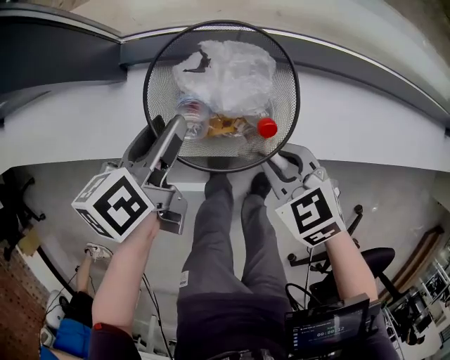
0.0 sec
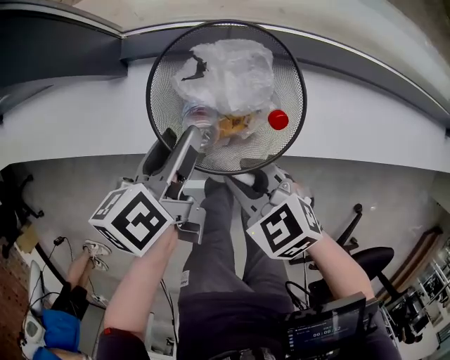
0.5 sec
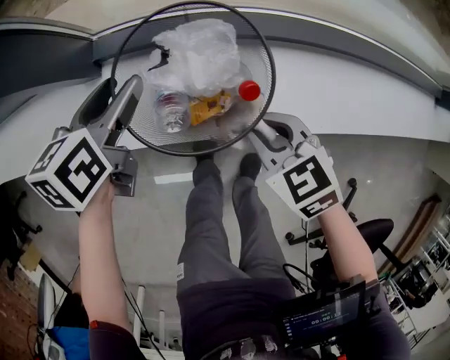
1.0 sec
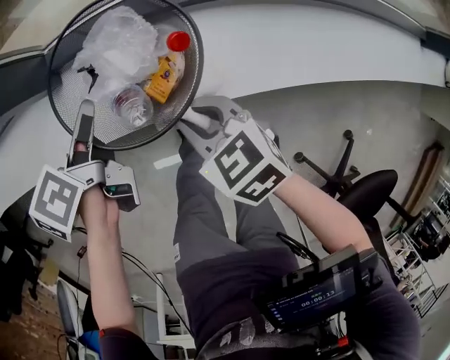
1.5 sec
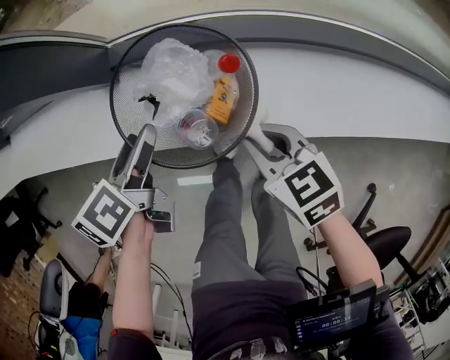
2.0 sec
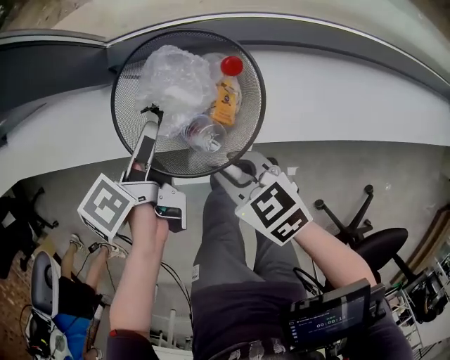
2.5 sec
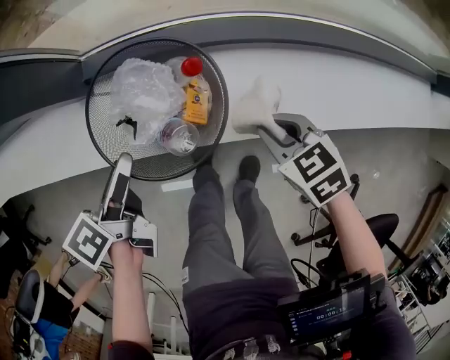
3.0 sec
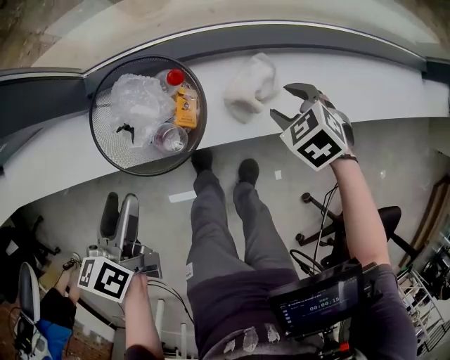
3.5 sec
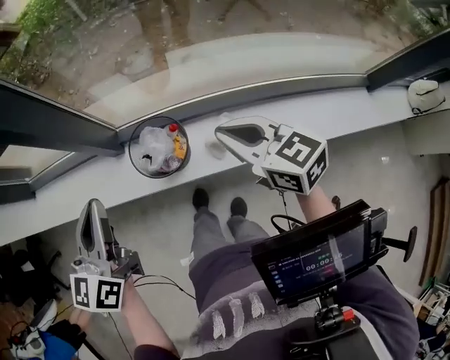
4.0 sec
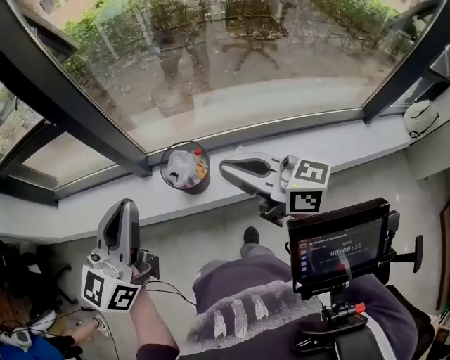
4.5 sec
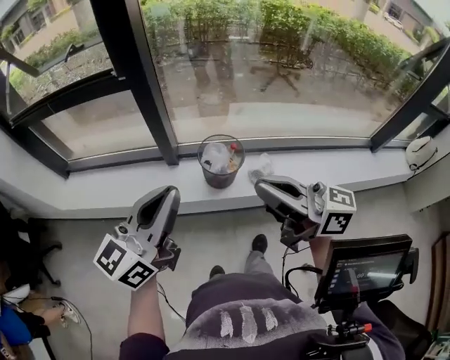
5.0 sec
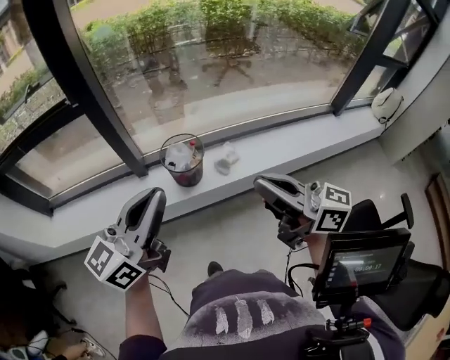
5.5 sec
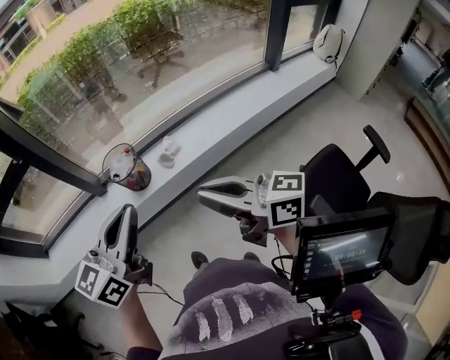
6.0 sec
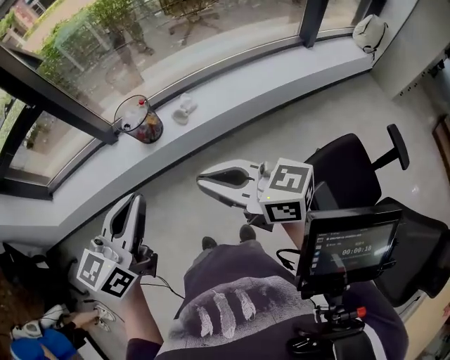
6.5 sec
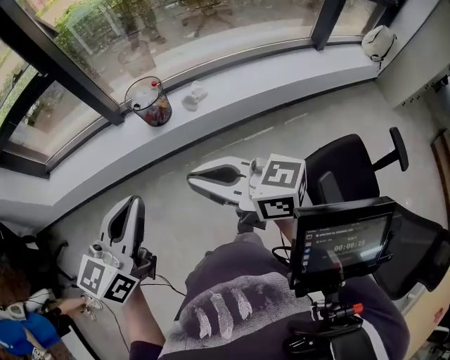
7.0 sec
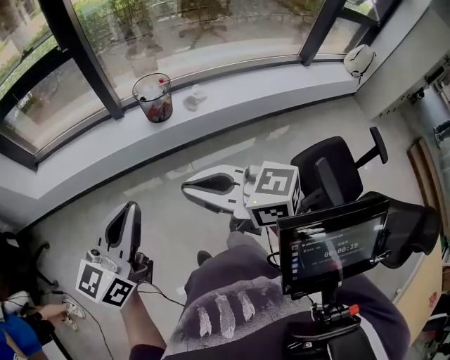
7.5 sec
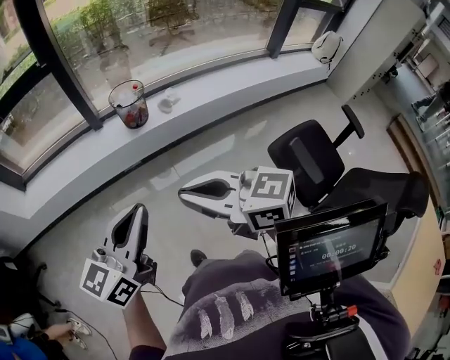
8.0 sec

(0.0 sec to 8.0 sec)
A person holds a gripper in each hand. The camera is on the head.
0.0 sec - 2.0 sec: The left gripper goes forward and returns, approximately 5 cm each way. Meanwhile the right gripper swings left and right, roughly 10 cm each way, with 2 reversals.
2.0 sec - 4.0 sec: Both grippers move upward, about 35 cm. The right gripper rotates some 30 degrees, and opens, then closes again. The left gripper tilts its fingers approximately 30 degrees upward, and closes.
4.0 sec - 6.0 sec: The grippers both shift backward by about 40 cm. The right gripper points its fingers roughly 30 degrees further upward. The left gripper turns by about 40 degrees.
6.0 sec - 8.0 sec: The right gripper travels to the left and backward by roughly 30 cm, and changes its angle by about 20 degrees. The left gripper goes about 30 cm backward and to the left.

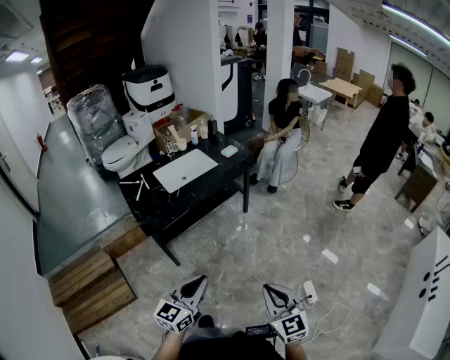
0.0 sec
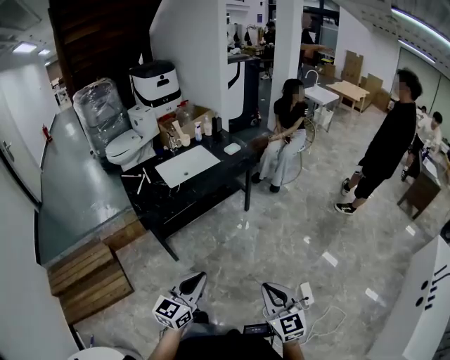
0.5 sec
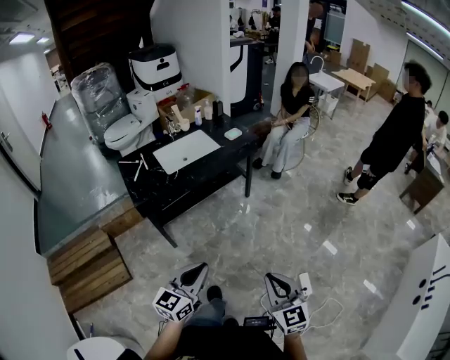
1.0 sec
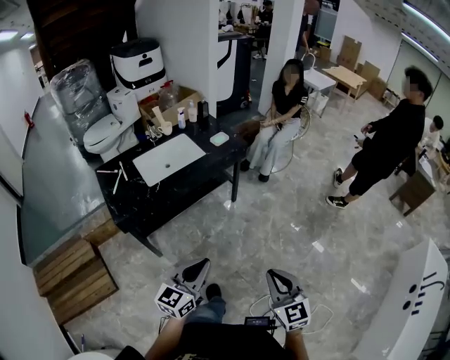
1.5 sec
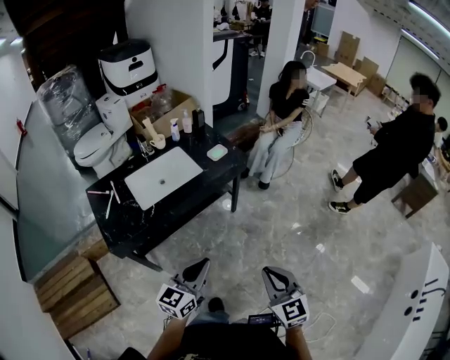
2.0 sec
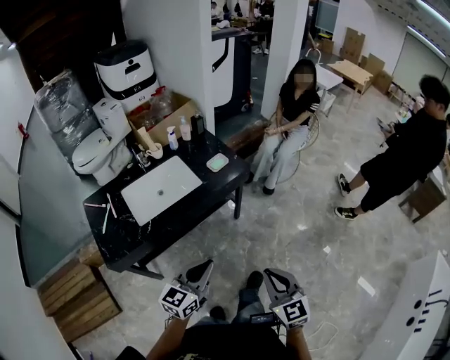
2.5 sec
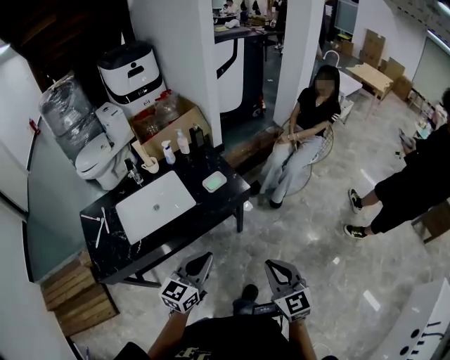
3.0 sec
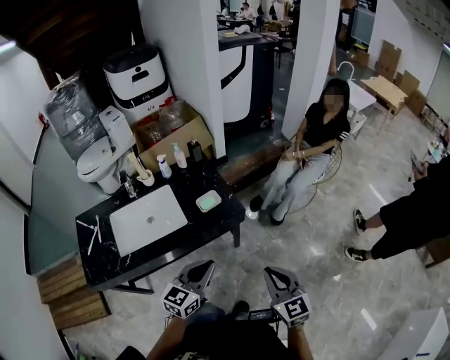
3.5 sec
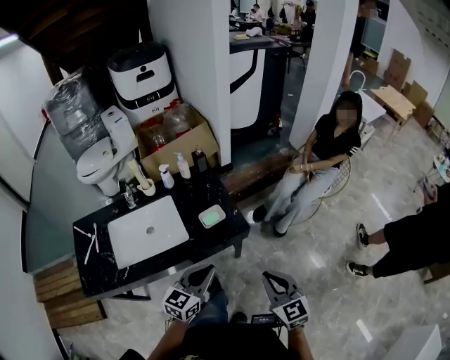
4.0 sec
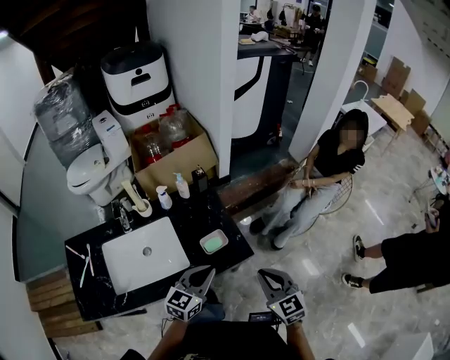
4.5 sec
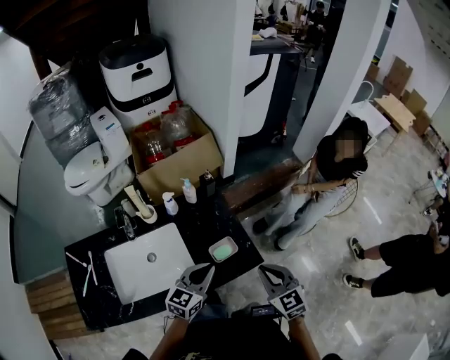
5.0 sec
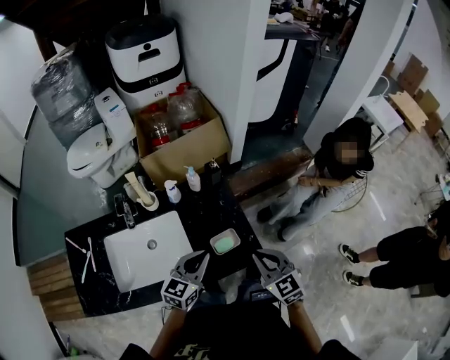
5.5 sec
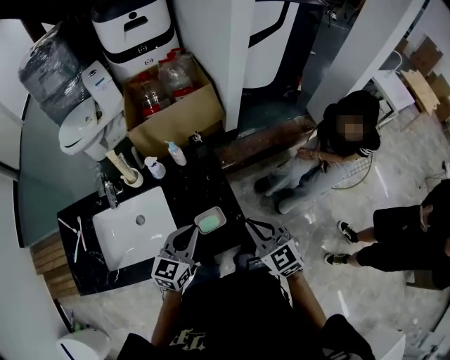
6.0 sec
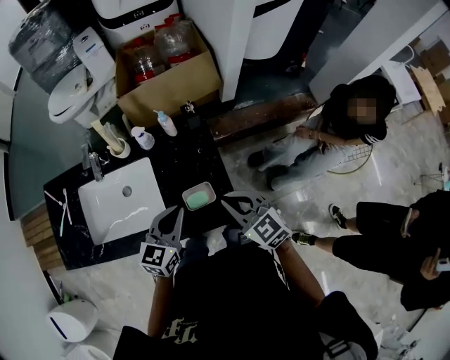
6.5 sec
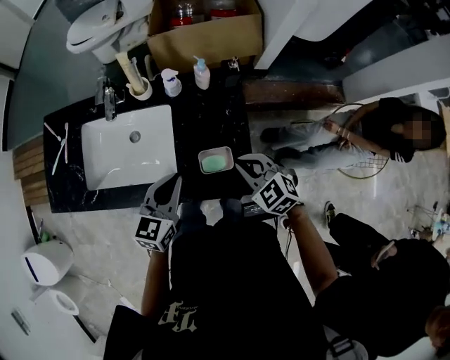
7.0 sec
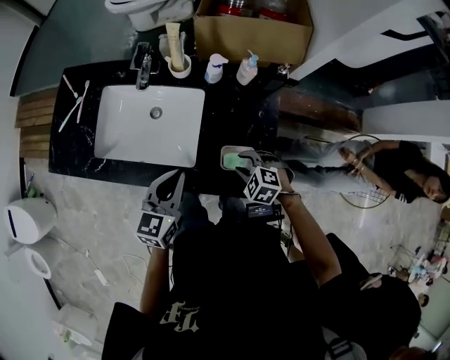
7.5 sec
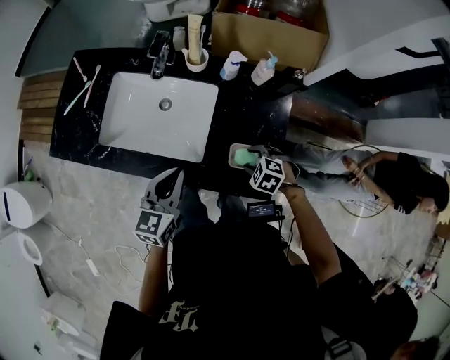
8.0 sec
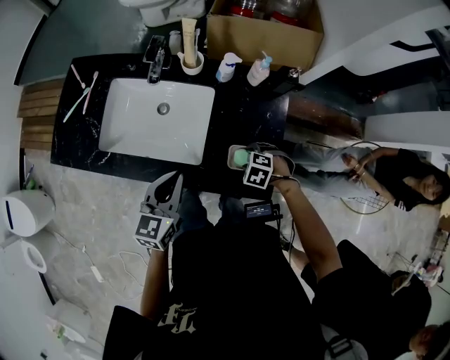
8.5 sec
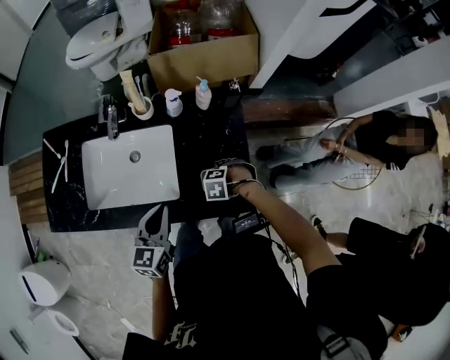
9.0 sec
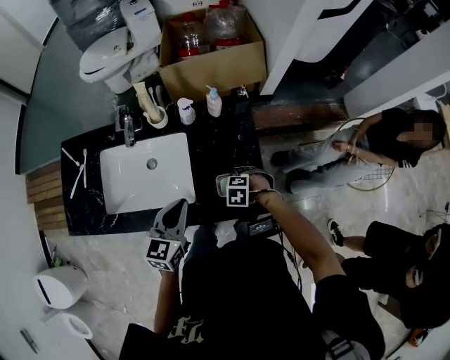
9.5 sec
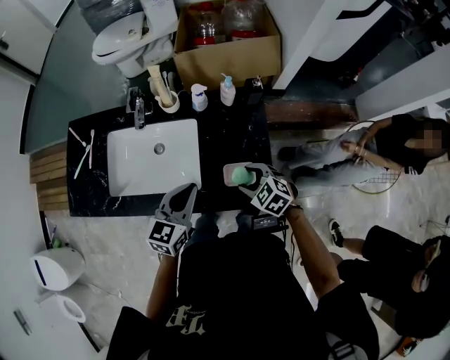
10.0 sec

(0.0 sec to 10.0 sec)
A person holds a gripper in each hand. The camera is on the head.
0.0 sec - 2.0 sec: The grippers both shift forward by roughly 30 cm.
2.0 sec - 4.0 sec: The two grippers travel together, forward, about 50 cm.
4.0 sec - 6.0 sec: Both grippers move forward, roughly 30 cm. The right gripper rotates about 20 degrees.
6.0 sec - 8.0 sec: The right gripper goes about 25 cm downward, angles its fingers downward, by roughly 50 degrees, and opens its fingers. The left gripper ends up about 20 cm from where it was, and changes its angle by about 40 degrees.
8.0 sec - 10.0 sec: The left gripper changes place by roughly 10 cm. Meanwhile the right gripper goes approximately 10 cm upward, and swivels approximately 30 degrees.

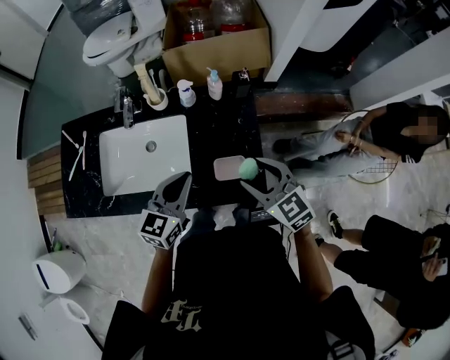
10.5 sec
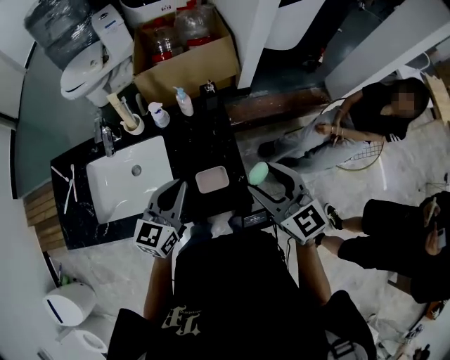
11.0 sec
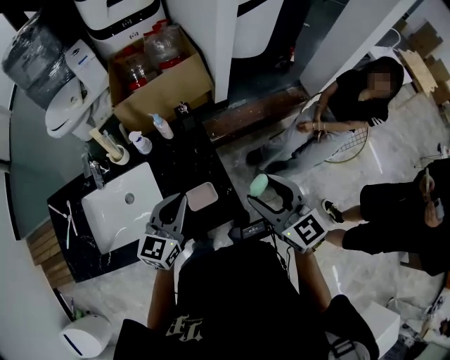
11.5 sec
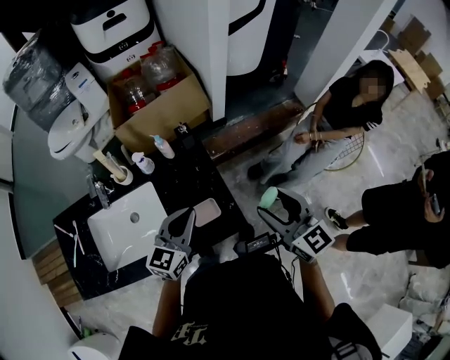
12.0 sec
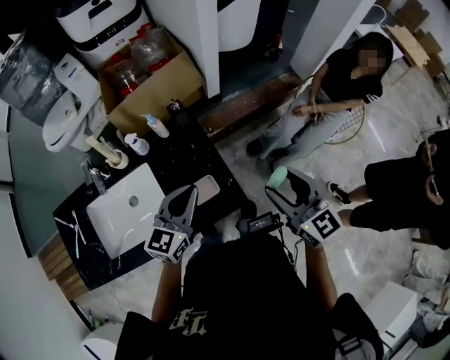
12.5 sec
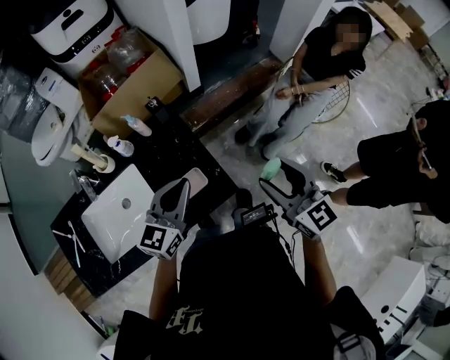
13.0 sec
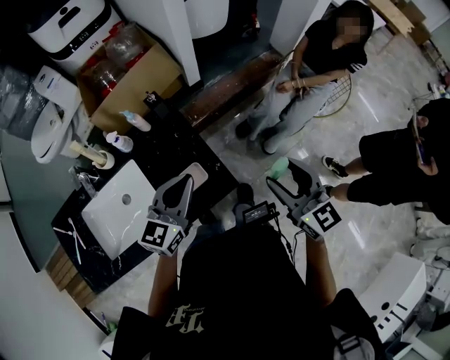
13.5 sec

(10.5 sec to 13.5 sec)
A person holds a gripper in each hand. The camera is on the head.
10.5 sec - 12.0 sec: The left gripper shifts some 10 cm to the right, while the right gripper shifts about 20 cm to the right and upward, and swivels approximately 40 degrees.
12.0 sec - 13.5 sec: The left gripper goes about 5 cm to the right. Meanwhile the right gripper moves to the right and backward, approximately 10 cm.

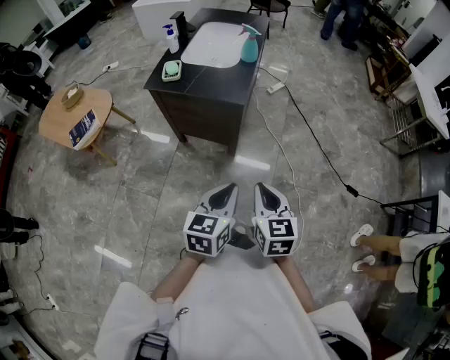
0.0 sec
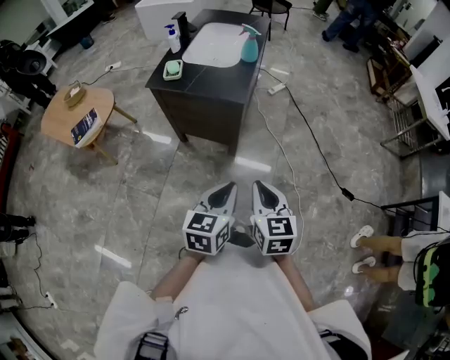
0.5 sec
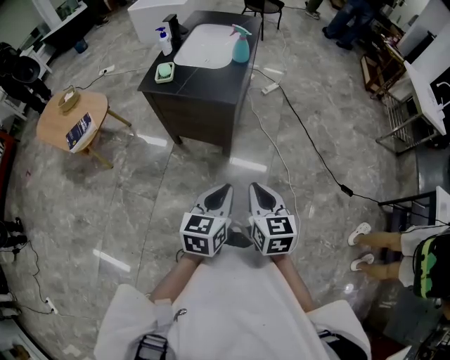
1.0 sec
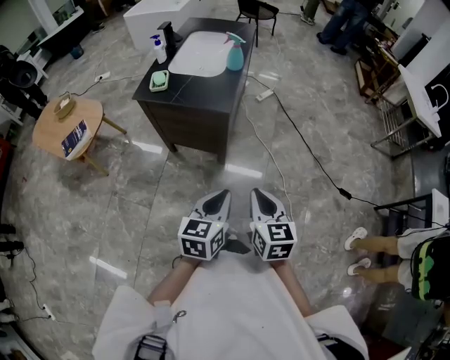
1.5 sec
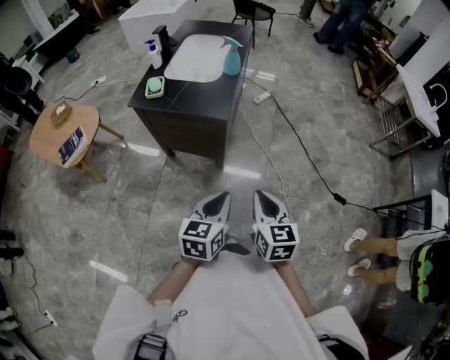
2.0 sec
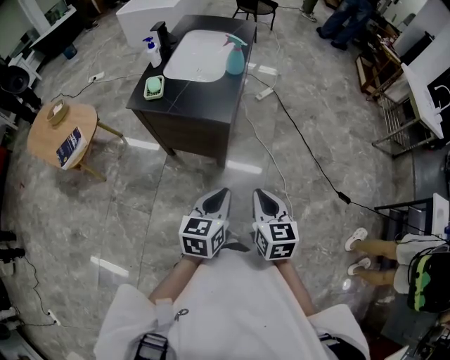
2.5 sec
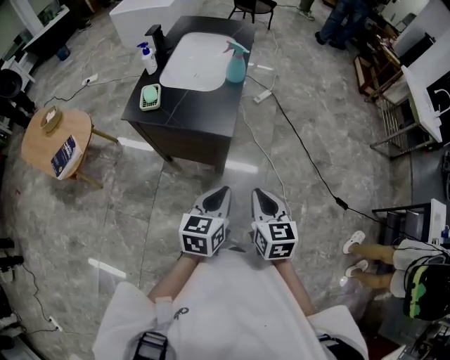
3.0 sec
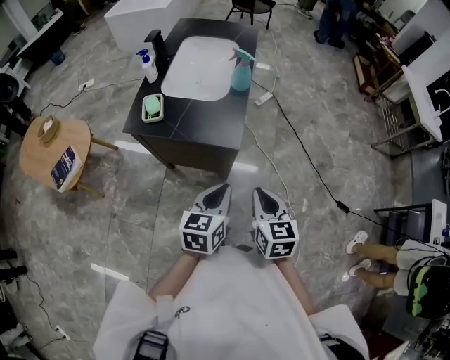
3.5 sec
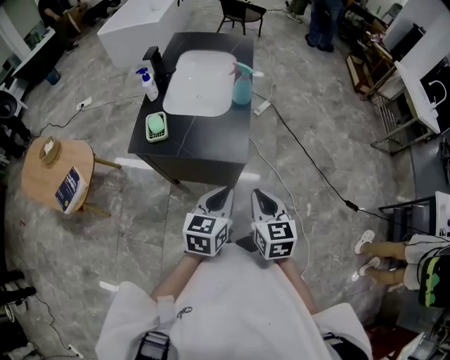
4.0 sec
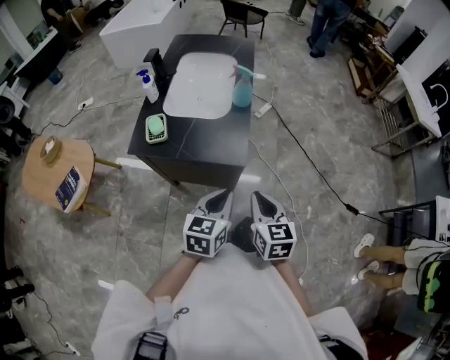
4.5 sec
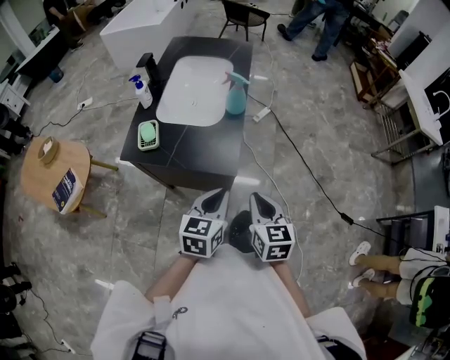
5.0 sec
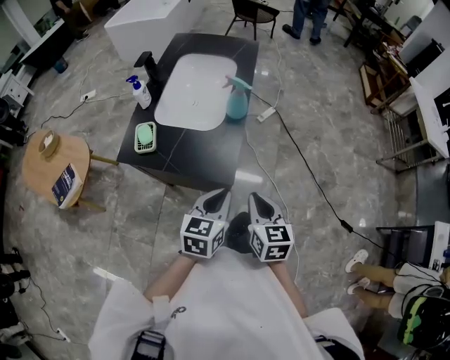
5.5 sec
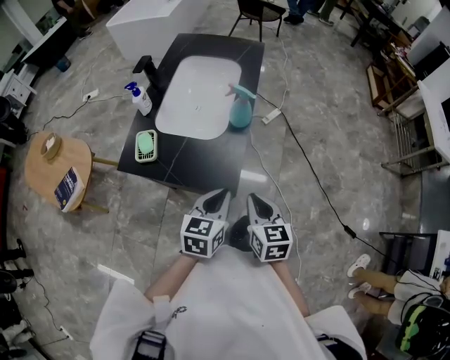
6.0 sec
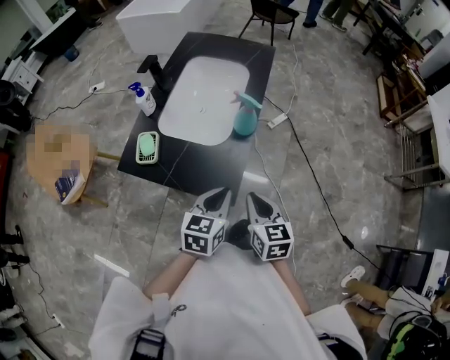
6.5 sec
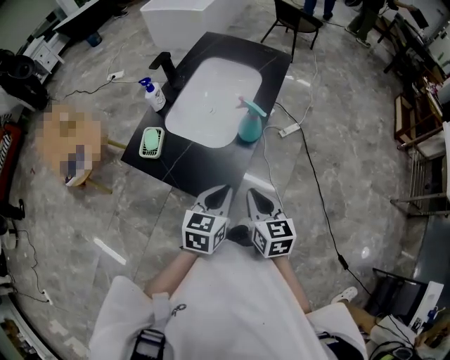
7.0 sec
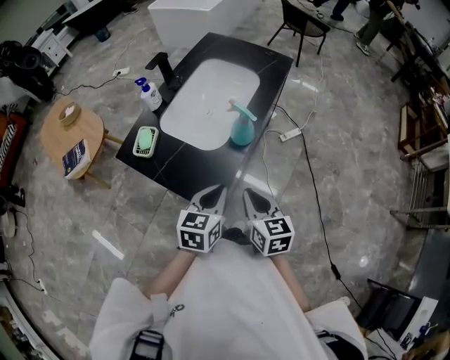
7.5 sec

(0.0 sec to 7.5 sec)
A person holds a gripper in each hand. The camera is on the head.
0.0 sec - 2.0 sec: The right gripper ends up roughly 5 cm from where it was.
2.0 sec - 4.0 sec: The two grippers go some 25 cm forward and to the left.
4.0 sec - 5.5 sec: The two grippers go about 10 cm forward.
5.5 sec - 7.5 sec: The two grippers go some 15 cm forward. The right gripper changes its angle by approximately 20 degrees.
